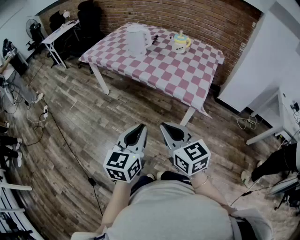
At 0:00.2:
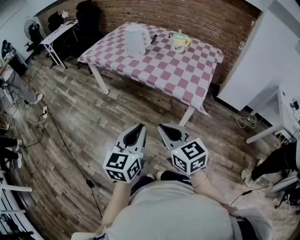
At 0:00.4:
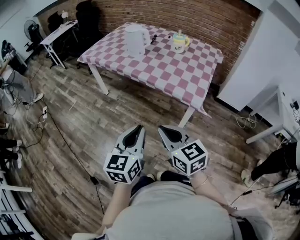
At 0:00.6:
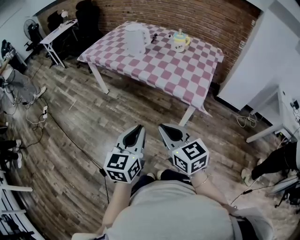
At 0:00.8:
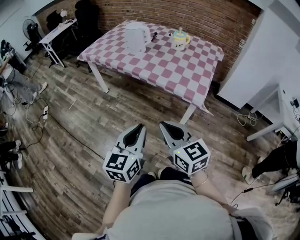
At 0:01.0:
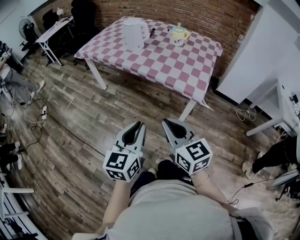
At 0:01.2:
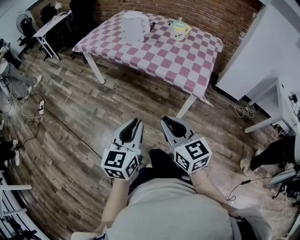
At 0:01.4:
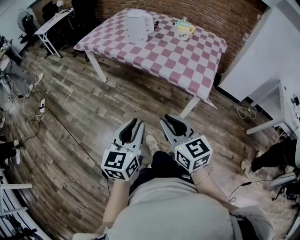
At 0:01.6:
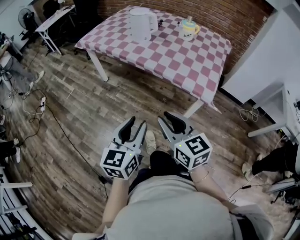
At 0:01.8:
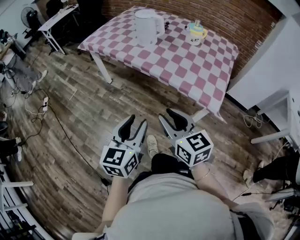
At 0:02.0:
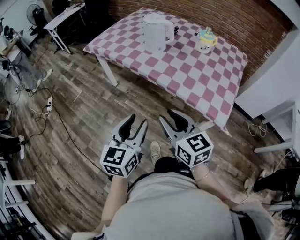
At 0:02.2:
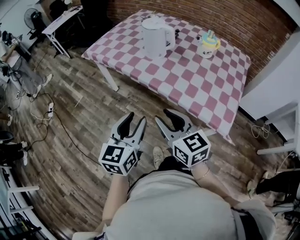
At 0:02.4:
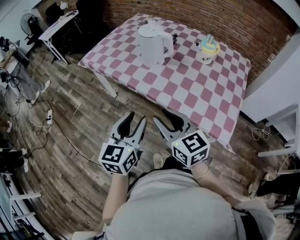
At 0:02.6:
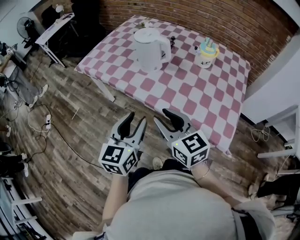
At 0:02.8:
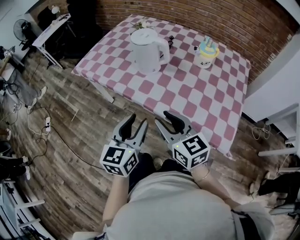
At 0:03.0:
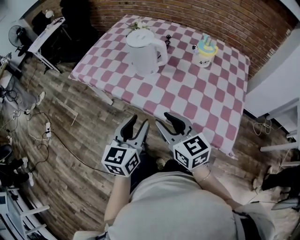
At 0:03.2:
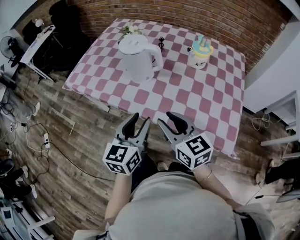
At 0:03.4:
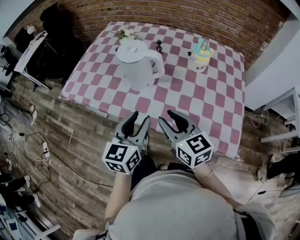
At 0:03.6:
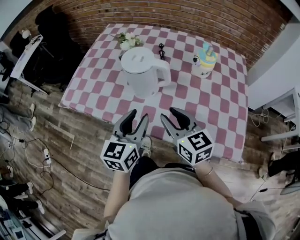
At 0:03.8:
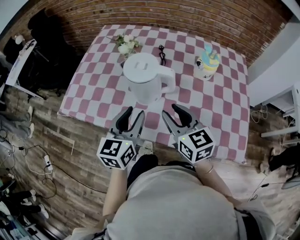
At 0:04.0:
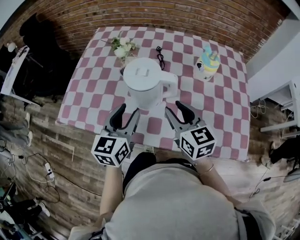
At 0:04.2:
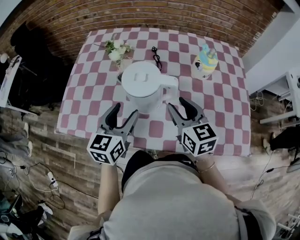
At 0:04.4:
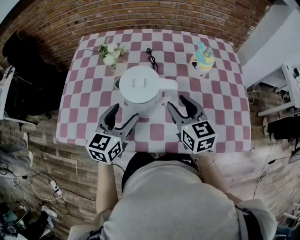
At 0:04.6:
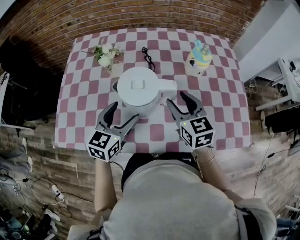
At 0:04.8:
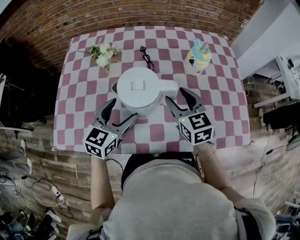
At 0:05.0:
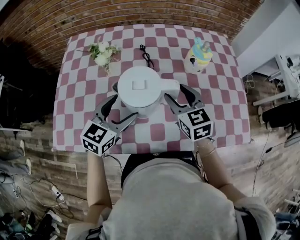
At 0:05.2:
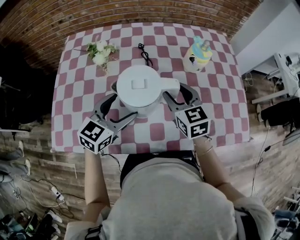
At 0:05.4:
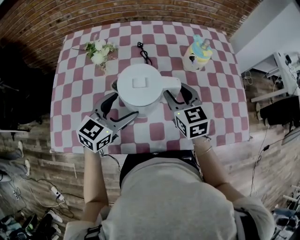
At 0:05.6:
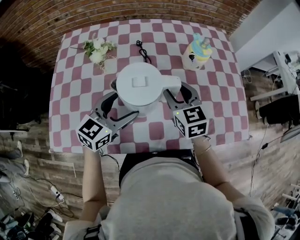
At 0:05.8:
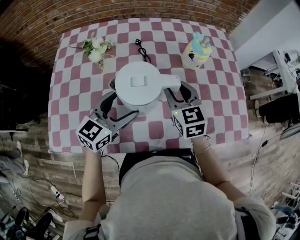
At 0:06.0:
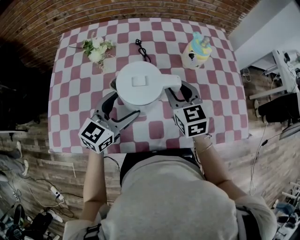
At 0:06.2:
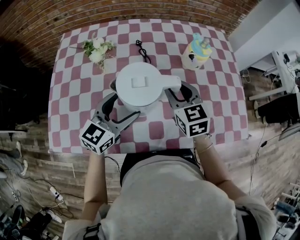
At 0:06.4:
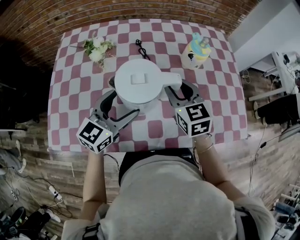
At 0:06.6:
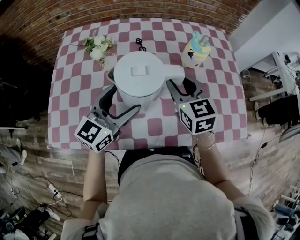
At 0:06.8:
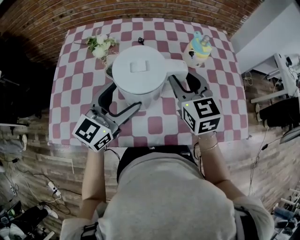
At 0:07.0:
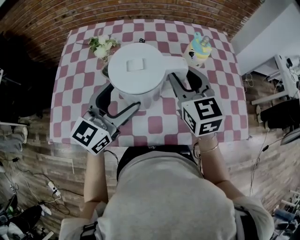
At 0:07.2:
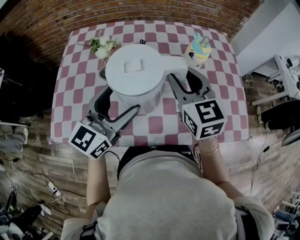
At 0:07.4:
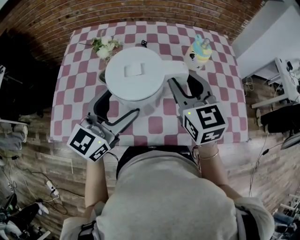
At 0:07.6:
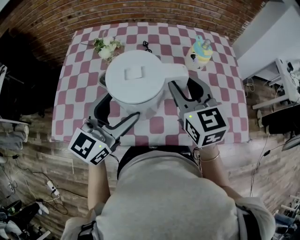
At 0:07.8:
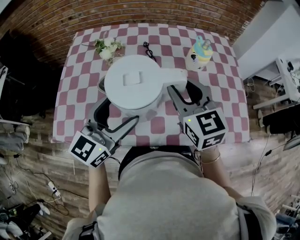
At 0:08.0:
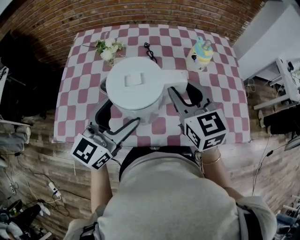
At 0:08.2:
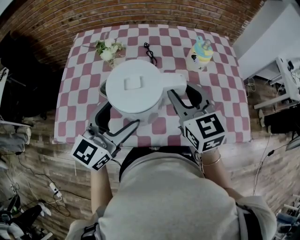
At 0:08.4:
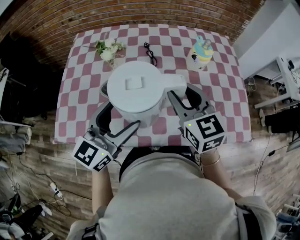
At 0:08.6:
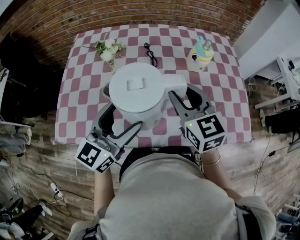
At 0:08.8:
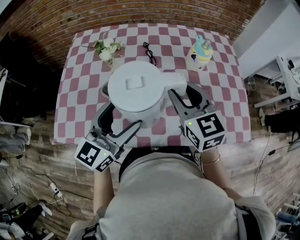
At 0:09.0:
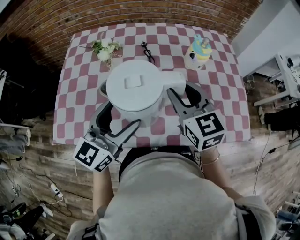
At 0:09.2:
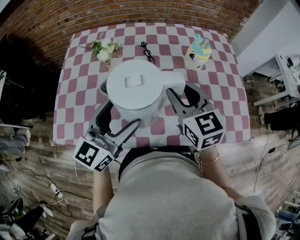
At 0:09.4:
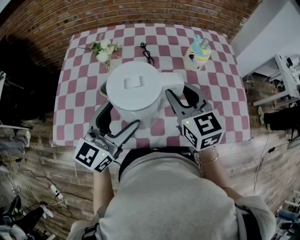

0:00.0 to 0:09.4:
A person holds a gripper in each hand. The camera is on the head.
0:00.0 to 0:01.6: The right gripper shifts some 5 cm forward, and opens. The left gripper heads to the left and forward, covering about 10 cm.
0:01.6 to 0:03.2: Both grippers travel together forward, some 35 cm.
0:03.2 to 0:04.8: The left gripper moves roughly 30 cm, changes its angle by approximately 40 degrees, and opens its fingers. The right gripper moves some 25 cm, changes its angle by some 40 degrees, and opens up.
0:04.8 to 0:06.2: The right gripper closes up.
0:06.2 to 0:07.8: Both grippers move upward and backward, roughly 10 cm.
0:07.8 to 0:09.4: The grippers stay close to where they were, moving slightly.

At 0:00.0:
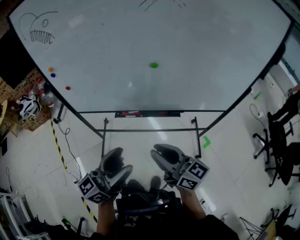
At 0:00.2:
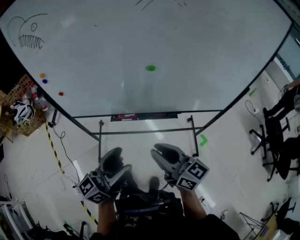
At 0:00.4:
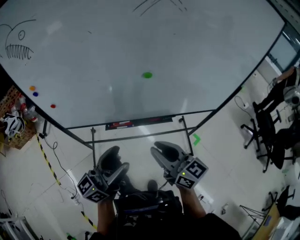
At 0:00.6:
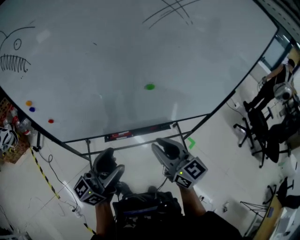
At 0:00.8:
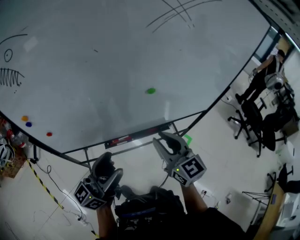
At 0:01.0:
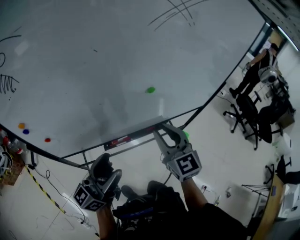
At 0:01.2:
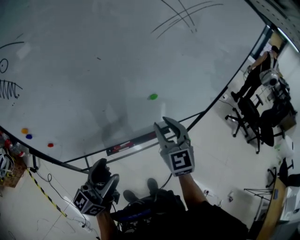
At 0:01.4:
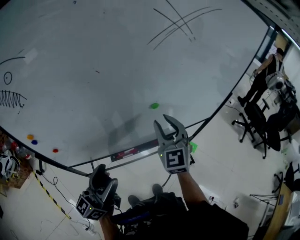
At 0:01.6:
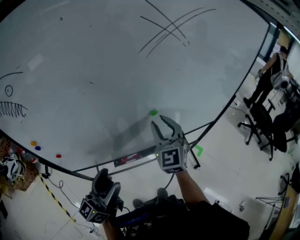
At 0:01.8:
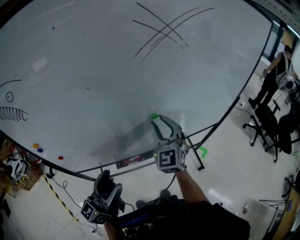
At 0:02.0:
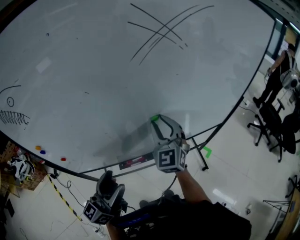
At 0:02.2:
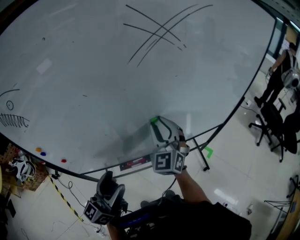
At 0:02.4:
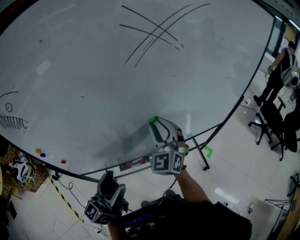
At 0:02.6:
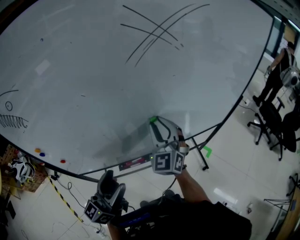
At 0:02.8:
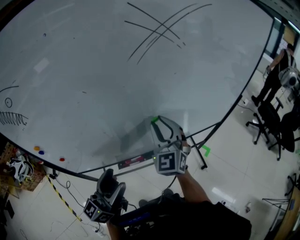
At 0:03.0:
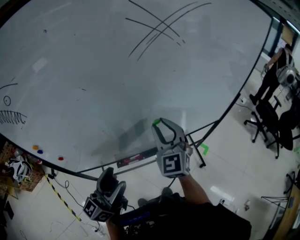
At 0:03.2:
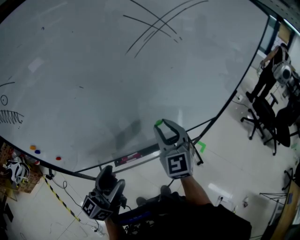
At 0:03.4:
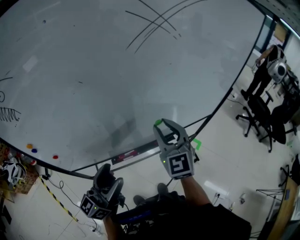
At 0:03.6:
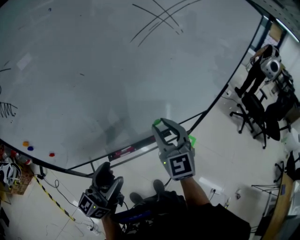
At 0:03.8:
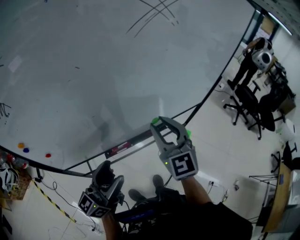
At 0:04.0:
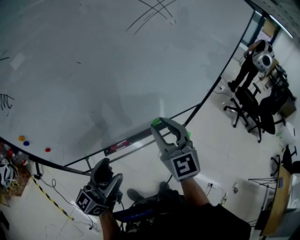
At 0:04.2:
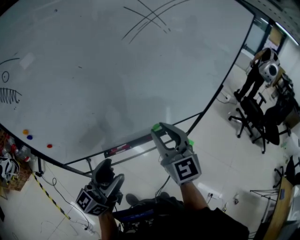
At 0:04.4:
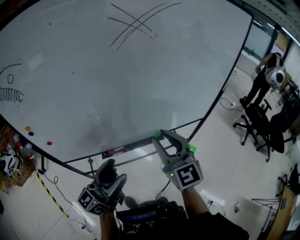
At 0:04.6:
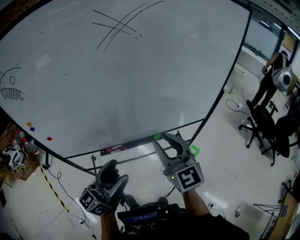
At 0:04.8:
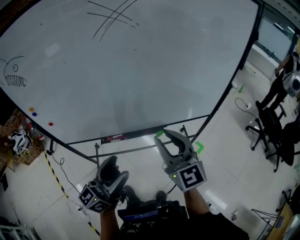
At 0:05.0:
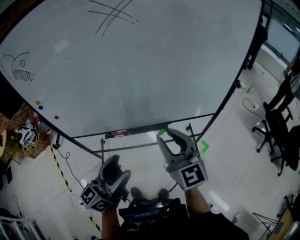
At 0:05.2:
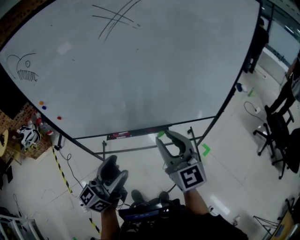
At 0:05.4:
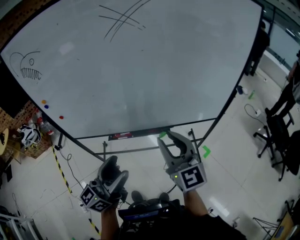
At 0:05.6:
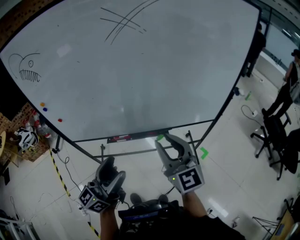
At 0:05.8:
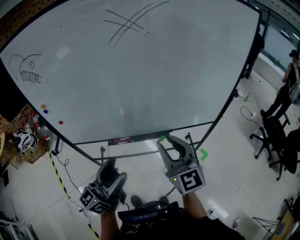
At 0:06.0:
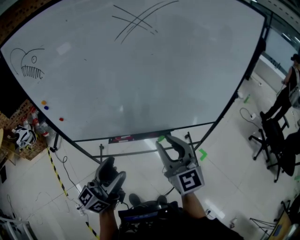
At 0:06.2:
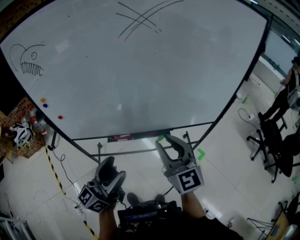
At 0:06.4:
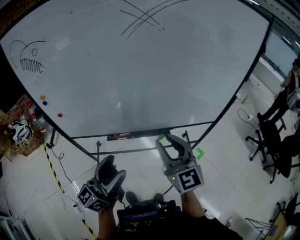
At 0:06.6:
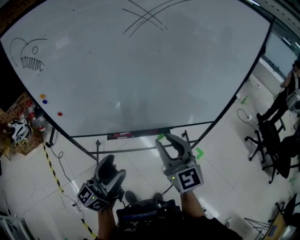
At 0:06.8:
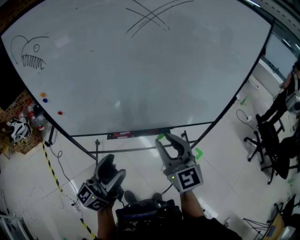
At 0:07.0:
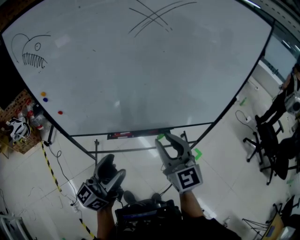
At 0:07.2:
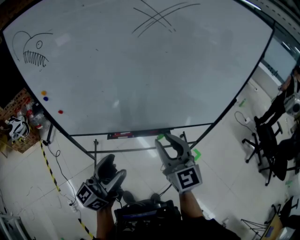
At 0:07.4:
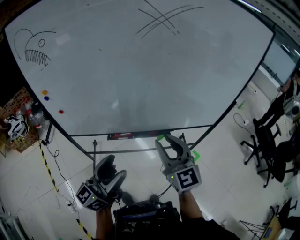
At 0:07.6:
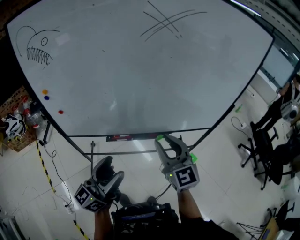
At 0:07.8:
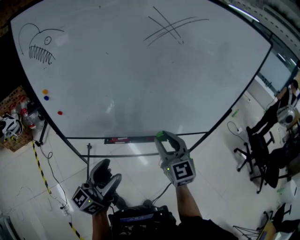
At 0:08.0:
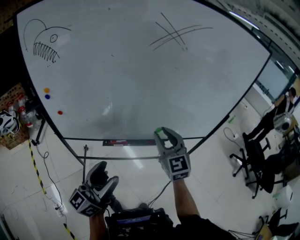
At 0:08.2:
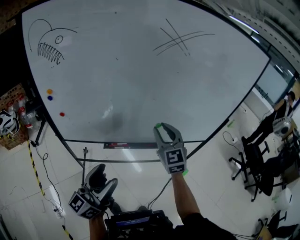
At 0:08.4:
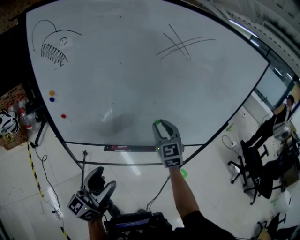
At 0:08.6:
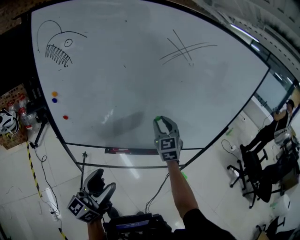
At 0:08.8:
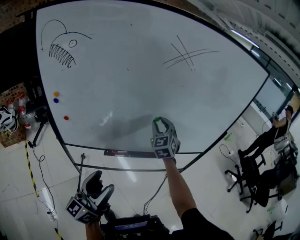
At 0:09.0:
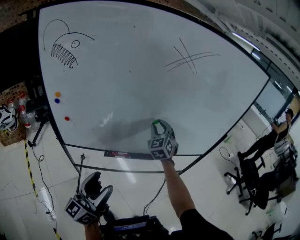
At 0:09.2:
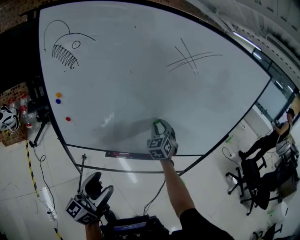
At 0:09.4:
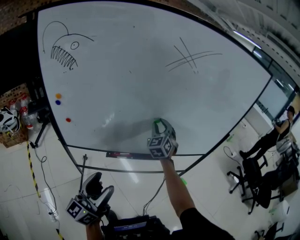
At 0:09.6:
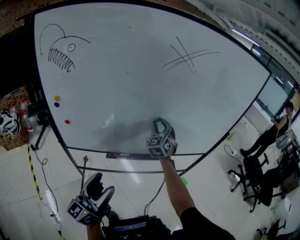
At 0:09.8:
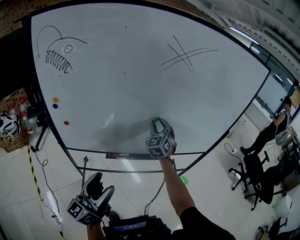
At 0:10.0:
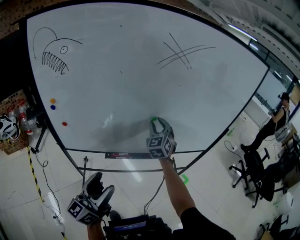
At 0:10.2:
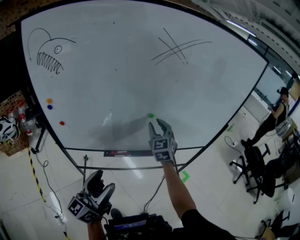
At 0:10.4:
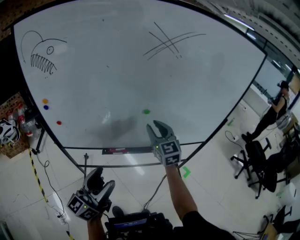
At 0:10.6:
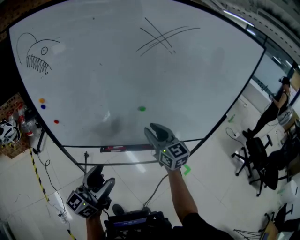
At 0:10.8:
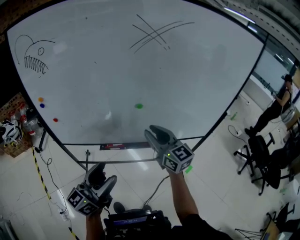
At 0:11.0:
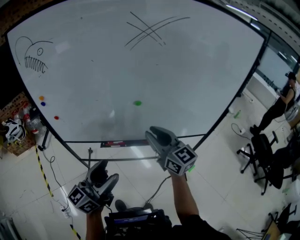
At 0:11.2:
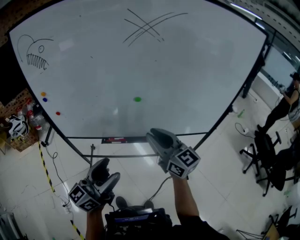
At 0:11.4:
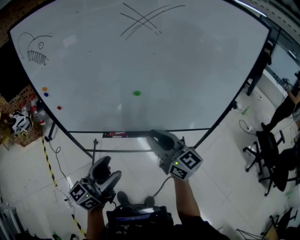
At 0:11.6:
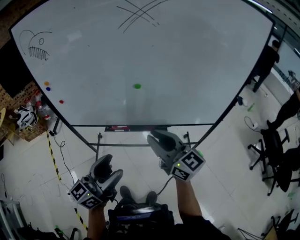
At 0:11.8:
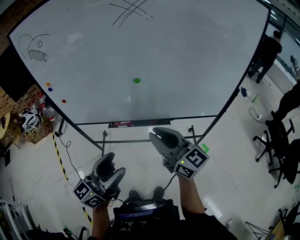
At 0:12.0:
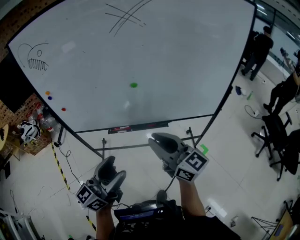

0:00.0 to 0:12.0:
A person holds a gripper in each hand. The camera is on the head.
0:00.0 to 0:01.6: The right gripper shifts by roughly 30 cm, and swivels about 70 degrees. The left gripper moves about 20 cm.
0:01.6 to 0:03.0: The grippers make only small movements.
0:03.0 to 0:04.4: The right gripper is displaced backward and to the right by roughly 15 cm, while the left gripper shifts some 10 cm to the right.
0:04.4 to 0:06.0: The grippers both shift backward by approximately 5 cm.
0:06.0 to 0:07.6: The right gripper moves roughly 5 cm.
0:07.6 to 0:09.0: The right gripper travels forward by about 20 cm, and rotates approximately 30 degrees; the left gripper heads to the left, covering about 5 cm.
0:09.0 to 0:10.4: The right gripper shifts some 5 cm backward, and swivels about 30 degrees.
0:10.4 to 0:12.0: The left gripper is displaced to the right and backward by approximately 15 cm, while the right gripper heads backward, covering roughly 20 cm, and rotates approximately 40 degrees.

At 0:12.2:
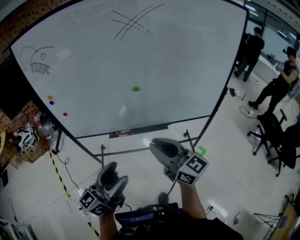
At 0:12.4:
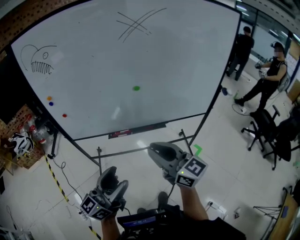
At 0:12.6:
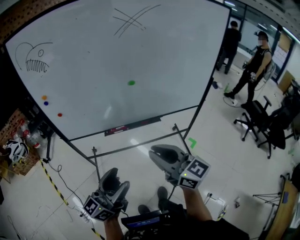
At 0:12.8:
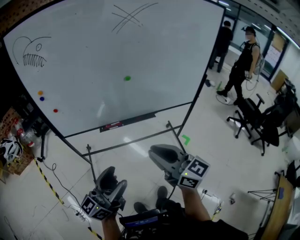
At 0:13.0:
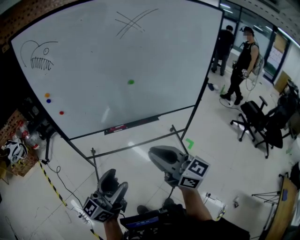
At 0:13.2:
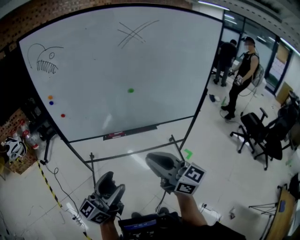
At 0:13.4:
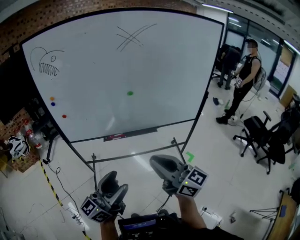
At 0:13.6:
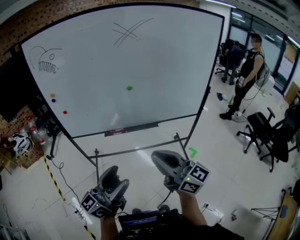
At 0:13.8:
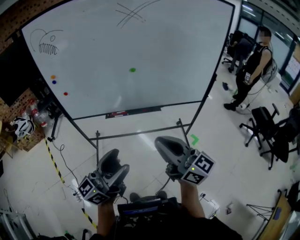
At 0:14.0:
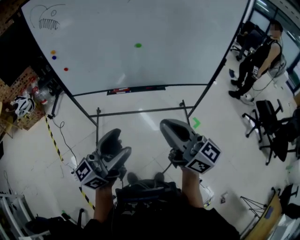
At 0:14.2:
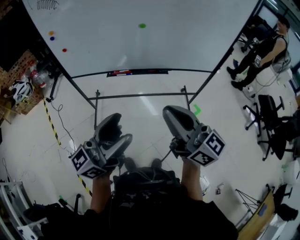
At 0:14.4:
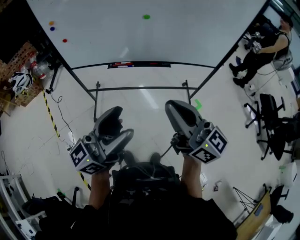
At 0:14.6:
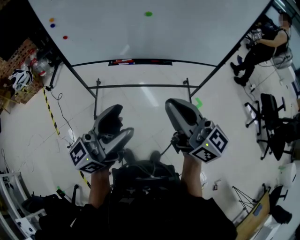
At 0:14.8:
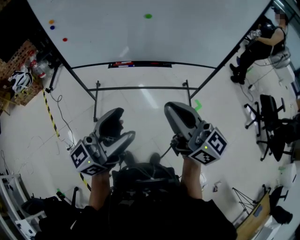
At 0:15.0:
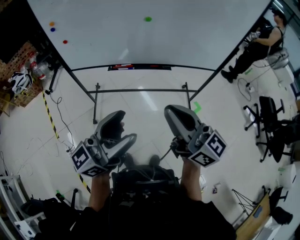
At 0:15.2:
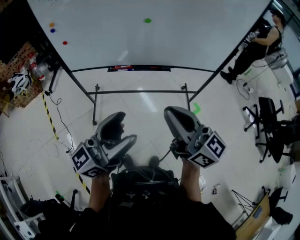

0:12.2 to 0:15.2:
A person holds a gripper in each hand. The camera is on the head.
0:12.2 to 0:13.8: The grippers both shift backward by about 15 cm.
0:13.8 to 0:15.2: The grippers stay close to where they were, moving slightly.
